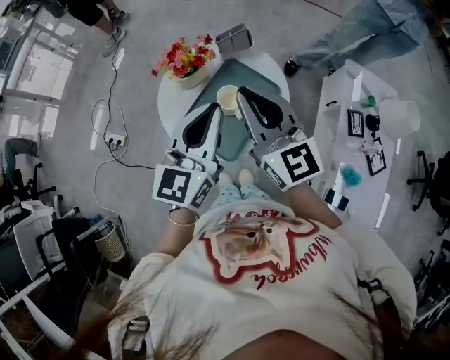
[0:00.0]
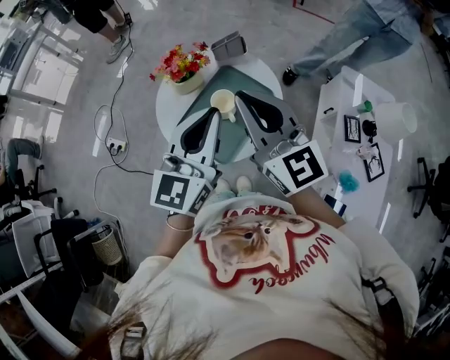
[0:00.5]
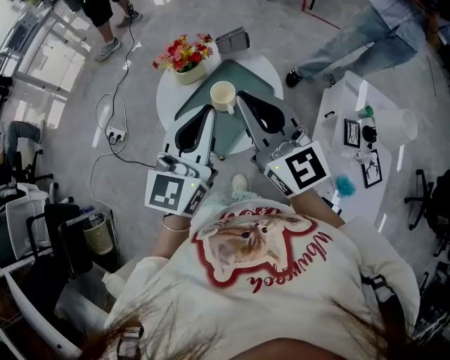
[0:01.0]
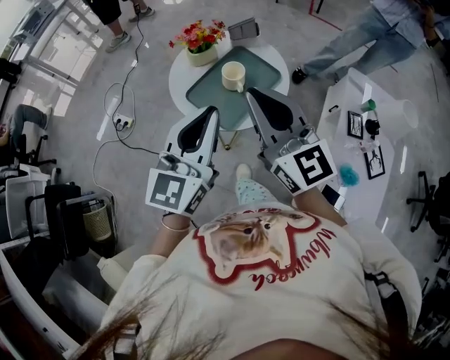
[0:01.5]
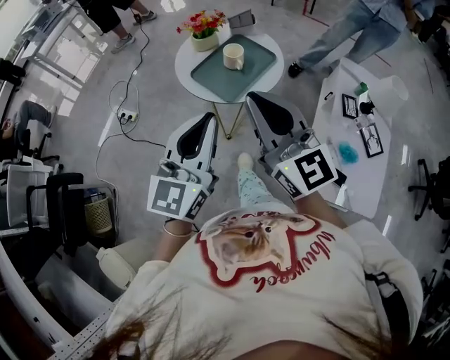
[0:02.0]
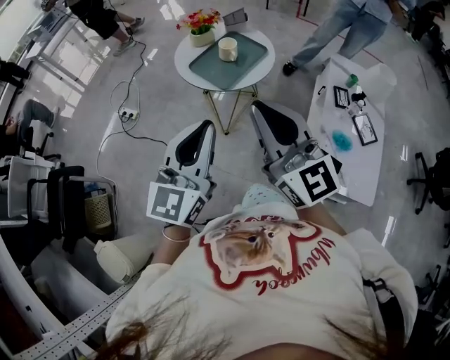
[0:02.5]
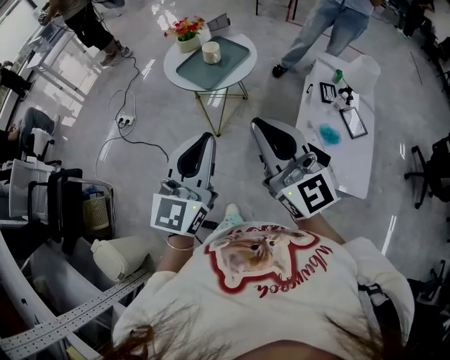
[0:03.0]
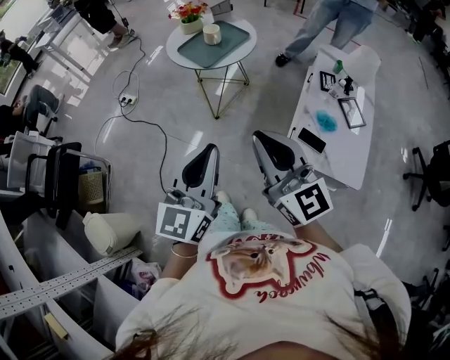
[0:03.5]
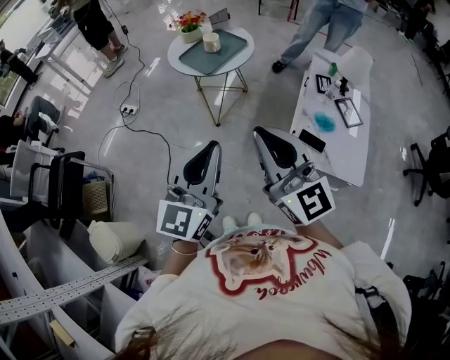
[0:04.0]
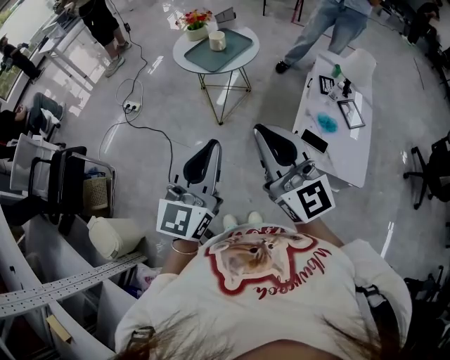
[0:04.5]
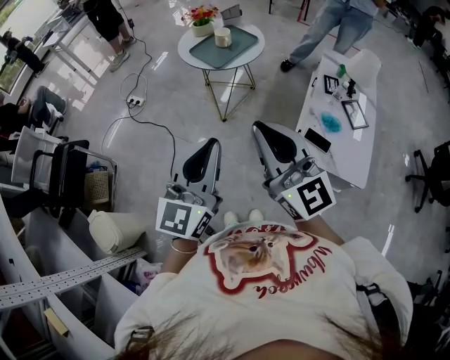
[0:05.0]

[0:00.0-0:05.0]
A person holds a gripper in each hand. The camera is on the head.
0:00.0 to 0:02.5: The pair of grippers is taken backward, some 40 cm.
0:02.5 to 0:05.0: Both grippers travel together backward, some 20 cm.

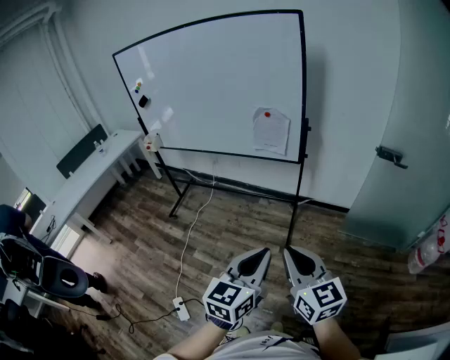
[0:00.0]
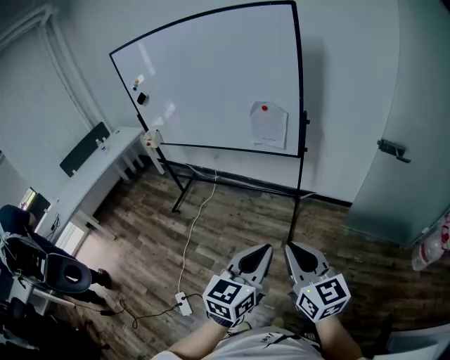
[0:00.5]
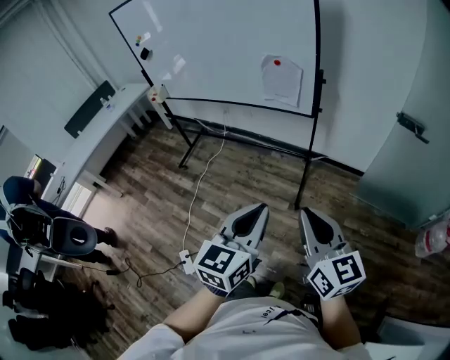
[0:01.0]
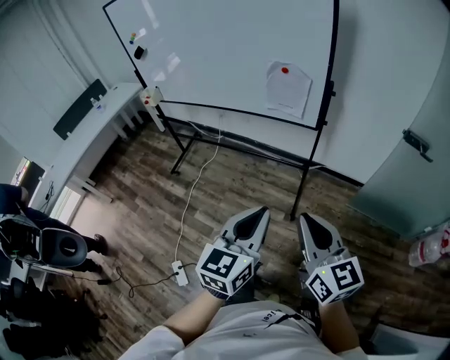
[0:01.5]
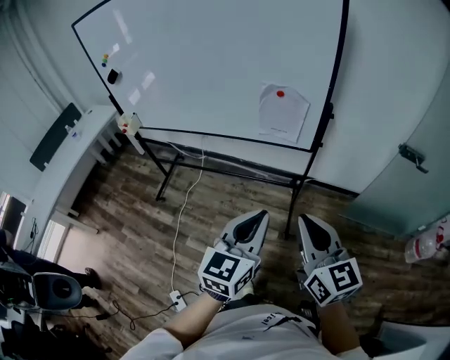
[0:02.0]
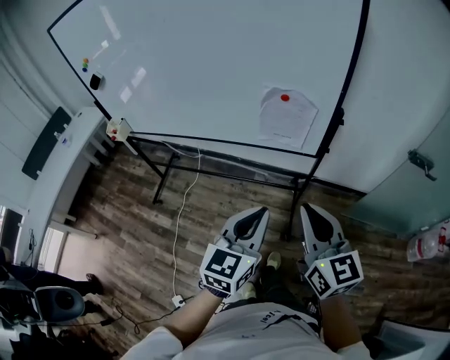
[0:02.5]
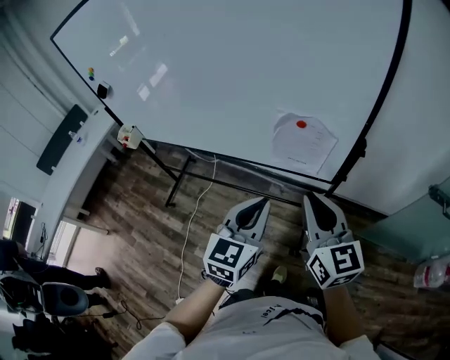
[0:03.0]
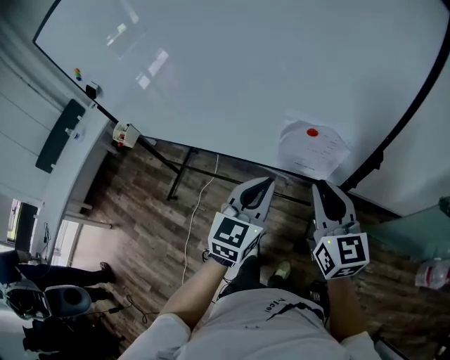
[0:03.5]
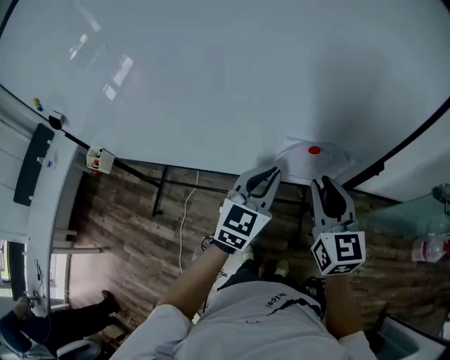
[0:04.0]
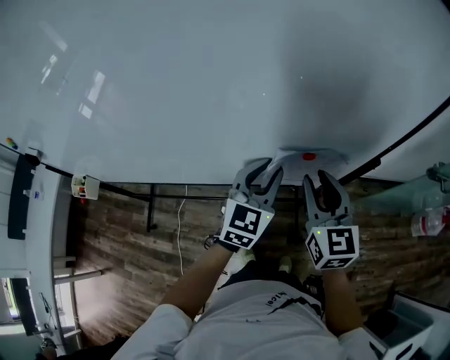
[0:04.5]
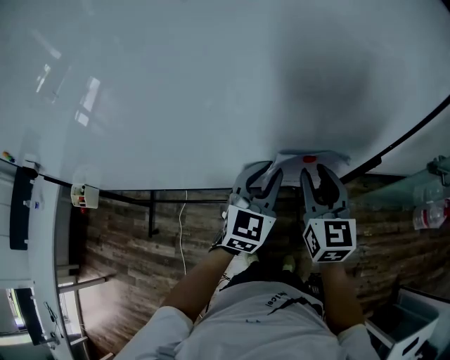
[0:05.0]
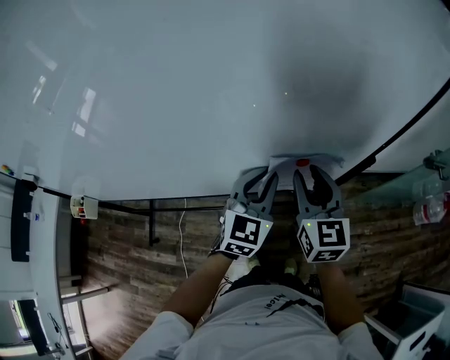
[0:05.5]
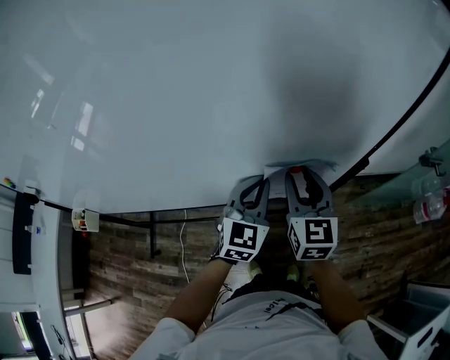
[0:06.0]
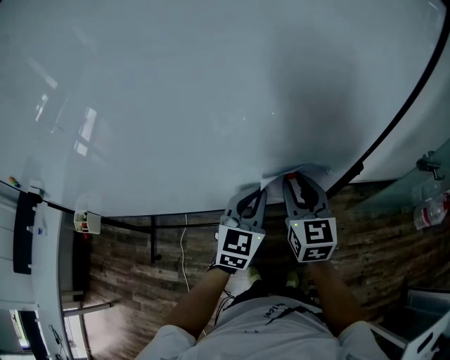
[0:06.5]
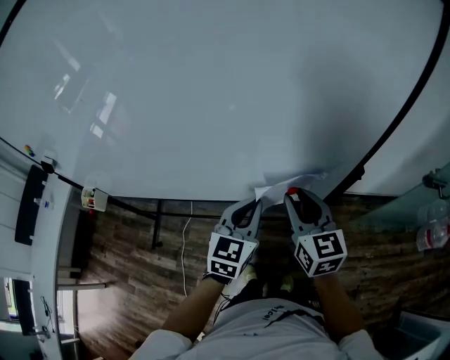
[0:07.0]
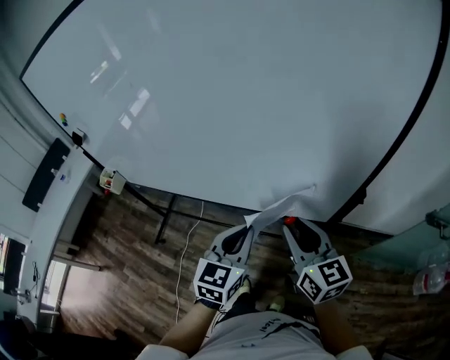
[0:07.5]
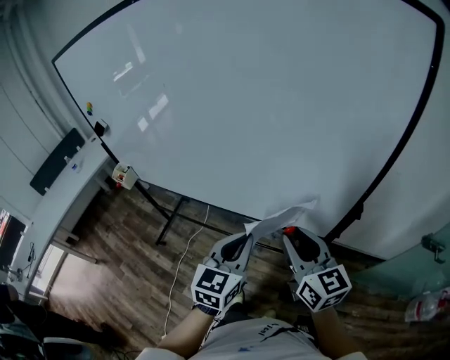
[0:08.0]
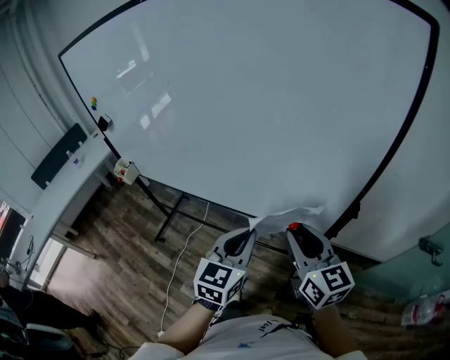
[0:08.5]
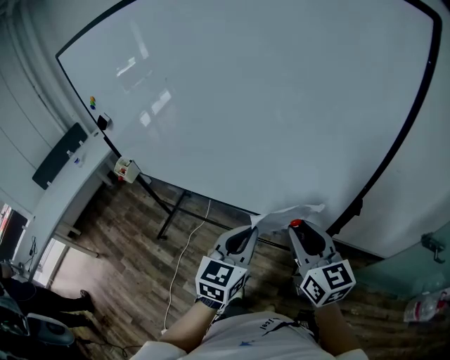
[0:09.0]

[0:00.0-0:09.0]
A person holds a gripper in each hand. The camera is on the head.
0:00.0 to 0:02.0: Both grippers move forward, approximately 25 cm.
0:02.0 to 0:04.5: Both grippers are carried forward, approximately 50 cm. The left gripper turns by about 20 degrees. The right gripper changes its angle by about 30 degrees, and opens its fingers.
0:04.5 to 0:07.0: The left gripper goes about 5 cm backward.
0:07.0 to 0:09.0: The grippers both shift backward and upward by roughly 10 cm. The right gripper swivels approximately 20 degrees.

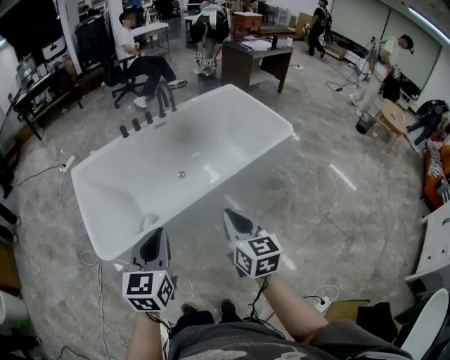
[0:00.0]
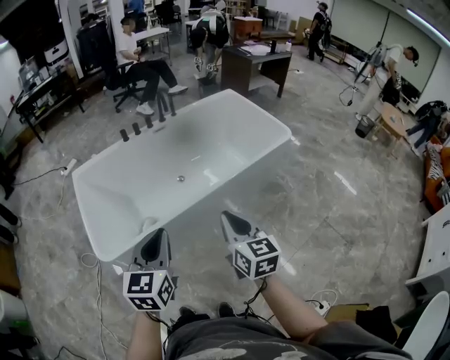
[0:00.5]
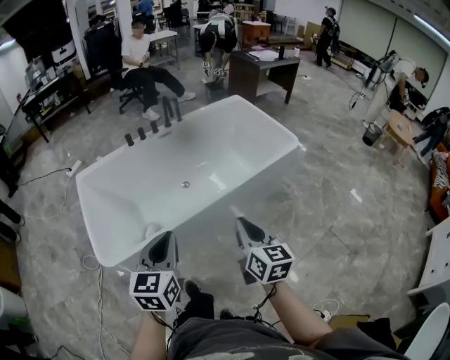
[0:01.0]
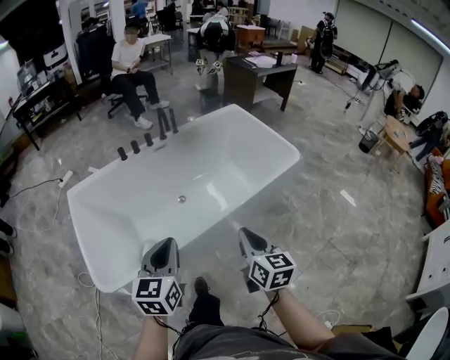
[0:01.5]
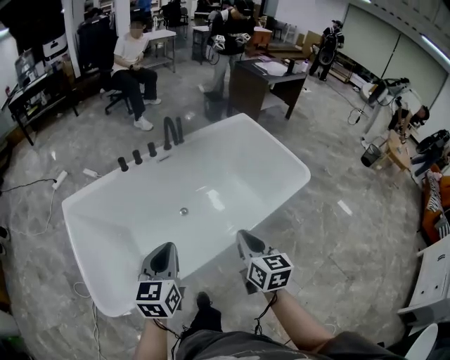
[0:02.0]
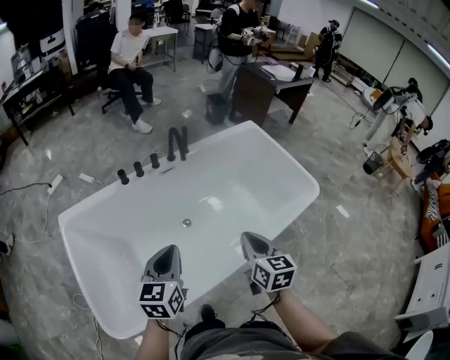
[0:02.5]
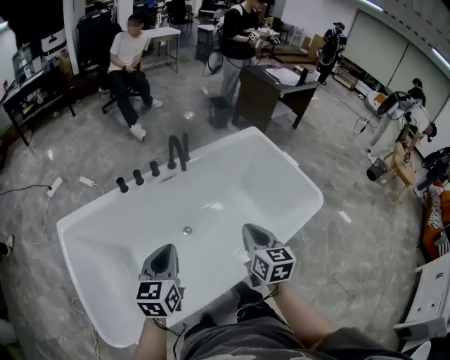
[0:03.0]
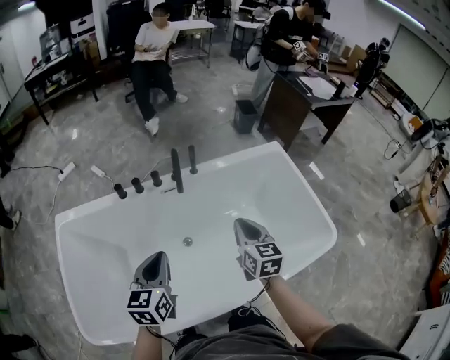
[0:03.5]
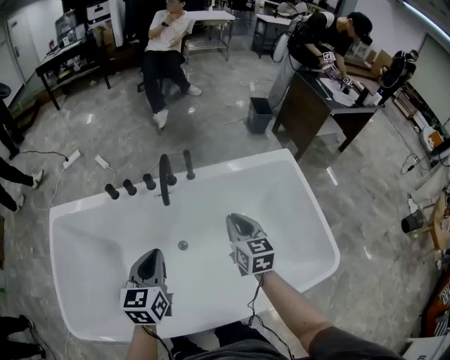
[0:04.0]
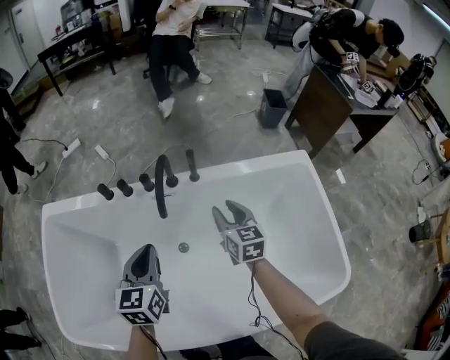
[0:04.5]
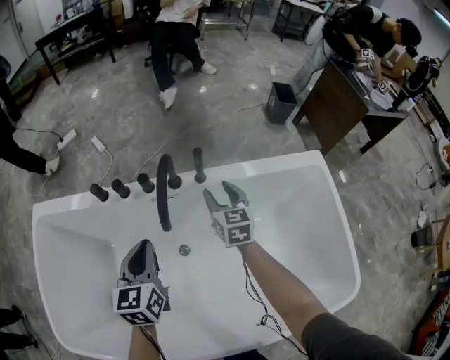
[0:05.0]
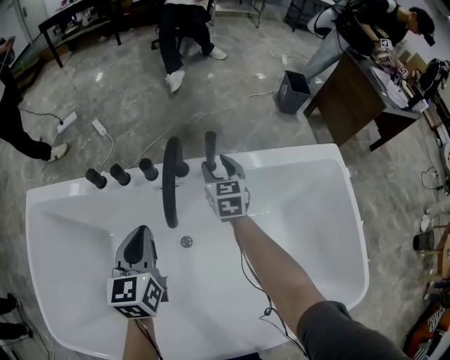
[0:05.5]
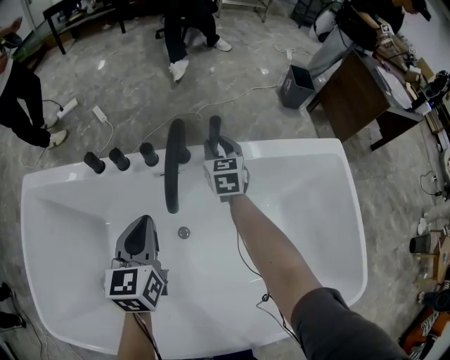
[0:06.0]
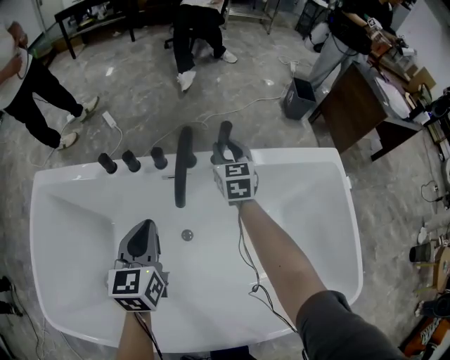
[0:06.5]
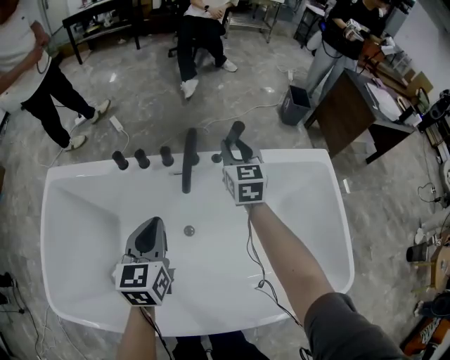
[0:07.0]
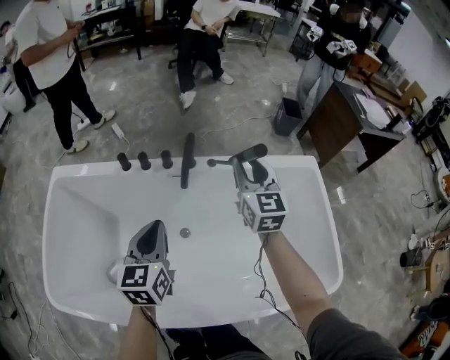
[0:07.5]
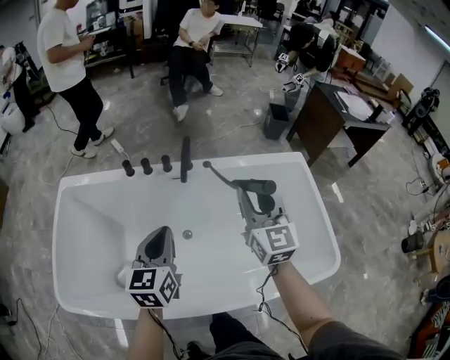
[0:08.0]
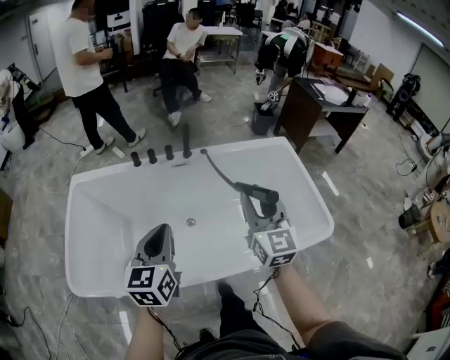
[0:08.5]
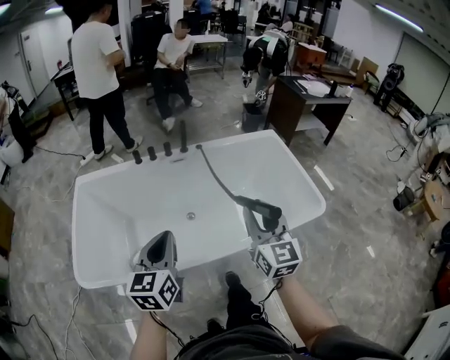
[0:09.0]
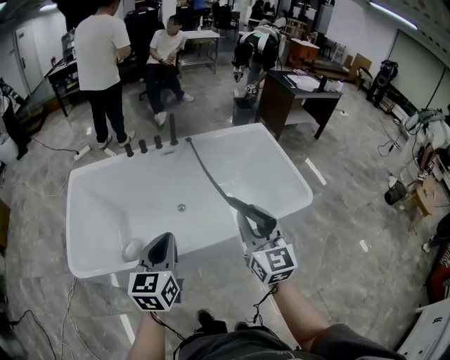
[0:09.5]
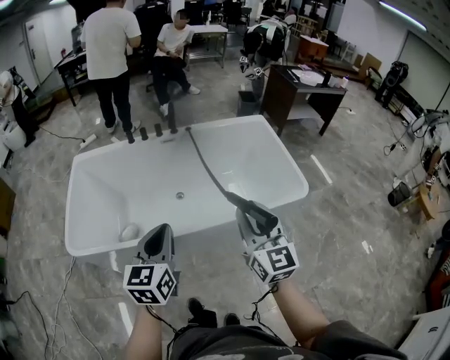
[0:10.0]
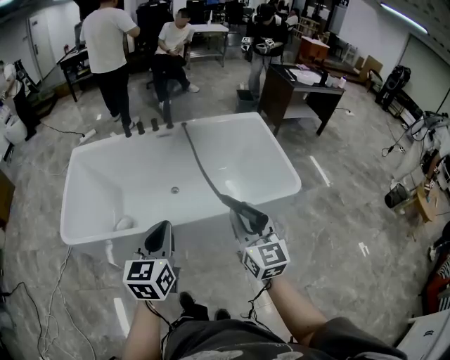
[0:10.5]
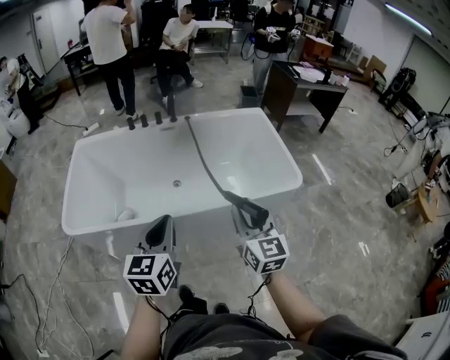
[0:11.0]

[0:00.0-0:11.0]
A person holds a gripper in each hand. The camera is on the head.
0:00.0 to 0:02.0: The two grippers go some 25 cm forward.
0:02.0 to 0:03.5: The two grippers go roughly 35 cm forward.
0:03.5 to 0:05.5: The left gripper shifts roughly 30 cm forward and downward. The right gripper is displaced forward and downward by about 50 cm, and opens its fingers.
0:05.5 to 0:07.5: The right gripper goes some 35 cm upward and backward, while the left gripper heads backward and upward, covering some 20 cm.
0:07.5 to 0:09.0: The grippers both shift backward by about 50 cm.
0:09.0 to 0:11.0: The grippers both shift backward and to the right by approximately 20 cm.

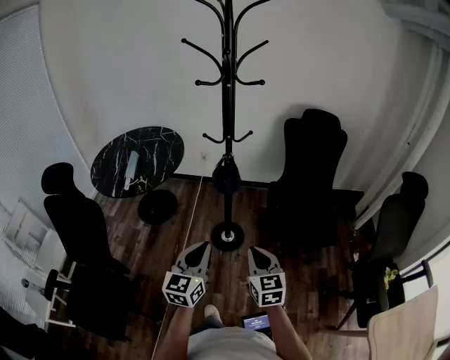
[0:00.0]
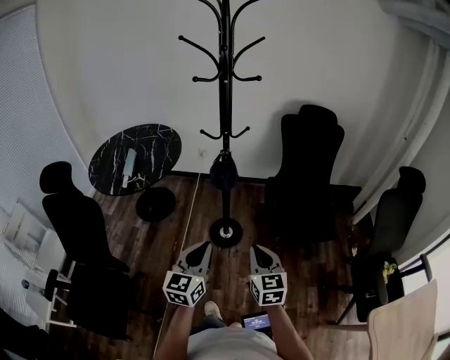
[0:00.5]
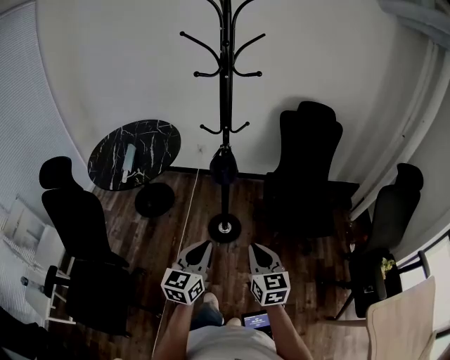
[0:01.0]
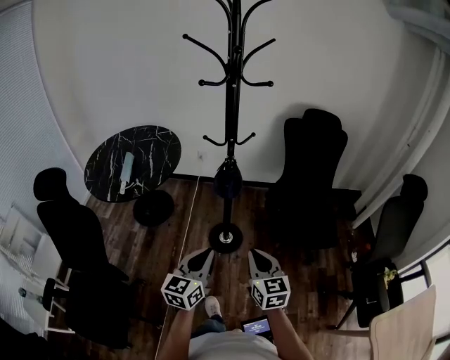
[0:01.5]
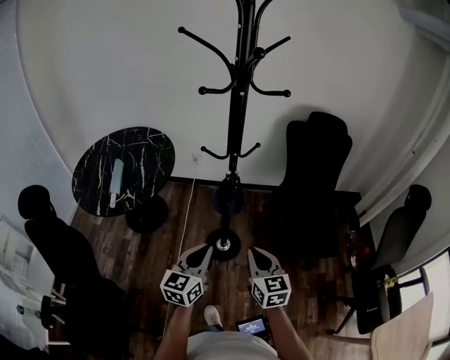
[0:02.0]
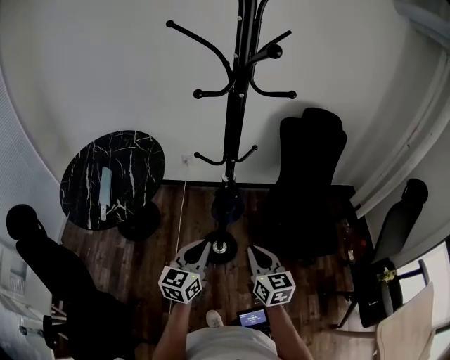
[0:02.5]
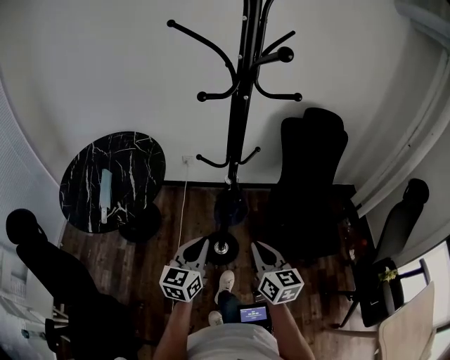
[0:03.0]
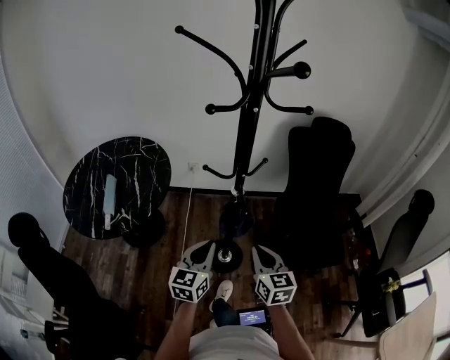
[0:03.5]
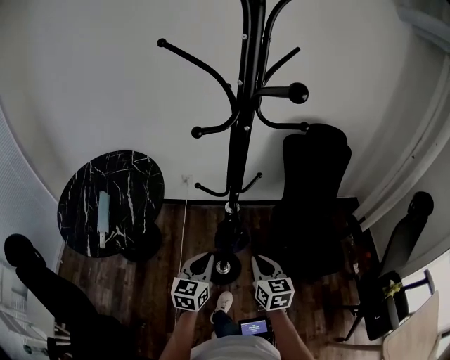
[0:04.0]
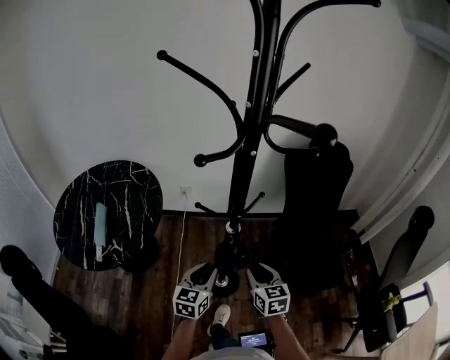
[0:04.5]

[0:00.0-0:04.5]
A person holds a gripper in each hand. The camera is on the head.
0:00.0 to 0:02.0: The two grippers go roughly 15 cm forward.
0:02.0 to 0:04.5: The two grippers go about 20 cm forward. The right gripper opens up.
